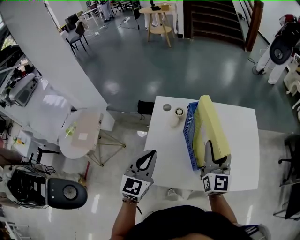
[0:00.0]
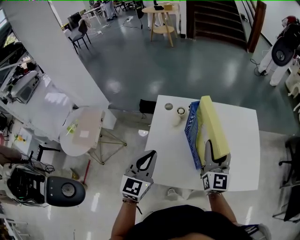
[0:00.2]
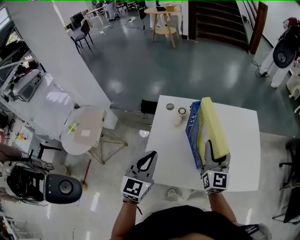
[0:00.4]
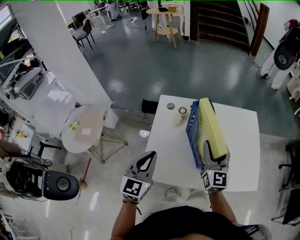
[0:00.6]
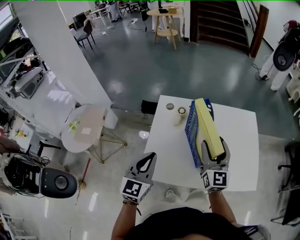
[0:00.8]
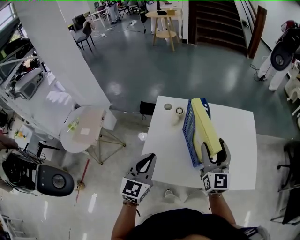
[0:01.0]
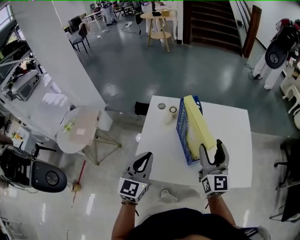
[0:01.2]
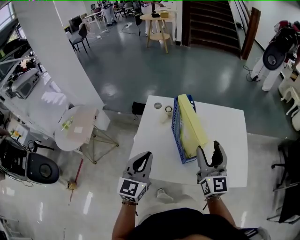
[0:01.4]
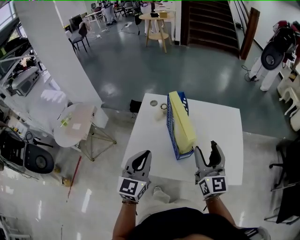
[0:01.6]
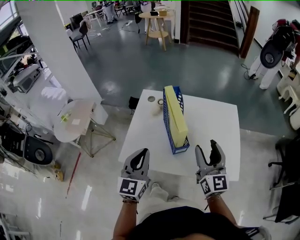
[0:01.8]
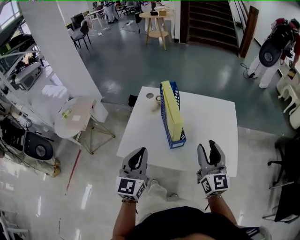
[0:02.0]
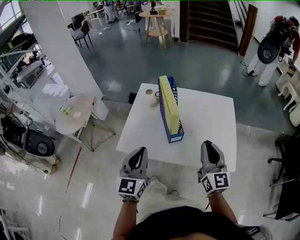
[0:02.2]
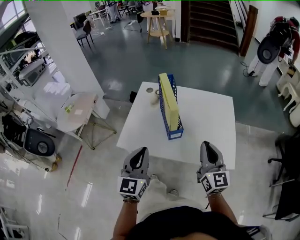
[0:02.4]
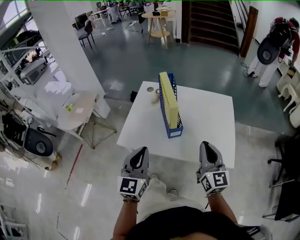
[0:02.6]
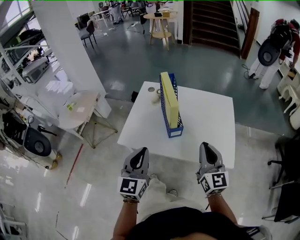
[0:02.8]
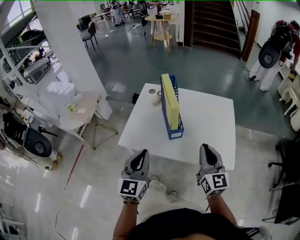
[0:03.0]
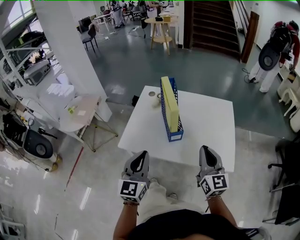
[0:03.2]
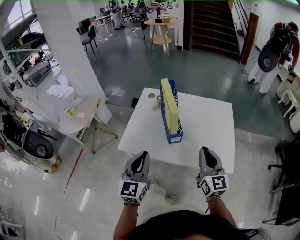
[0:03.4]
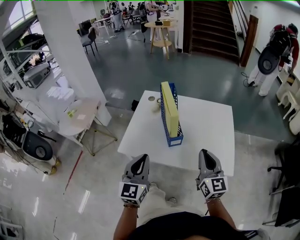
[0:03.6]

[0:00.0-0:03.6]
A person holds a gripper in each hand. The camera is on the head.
0:00.0 to 0:01.8: The grippers both shift to the right and backward by some 15 cm.
0:01.8 to 0:03.6: Both grippers move backward, about 10 cm. The right gripper closes up.

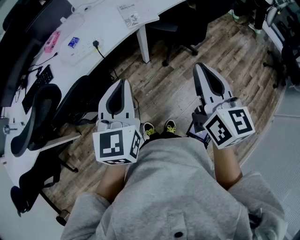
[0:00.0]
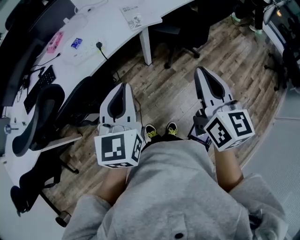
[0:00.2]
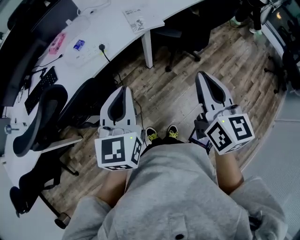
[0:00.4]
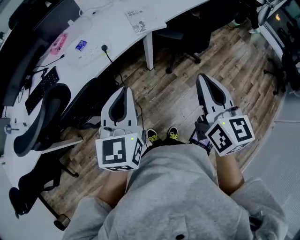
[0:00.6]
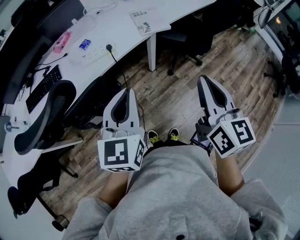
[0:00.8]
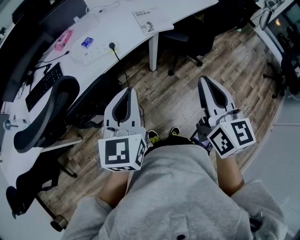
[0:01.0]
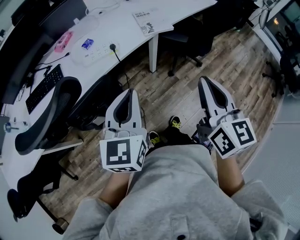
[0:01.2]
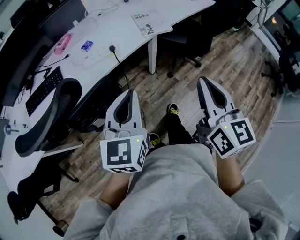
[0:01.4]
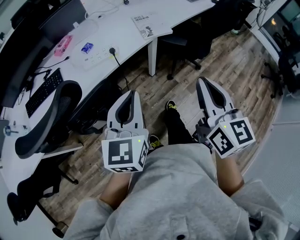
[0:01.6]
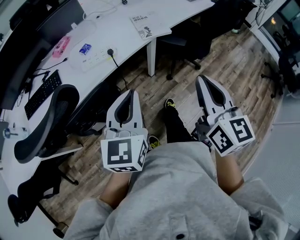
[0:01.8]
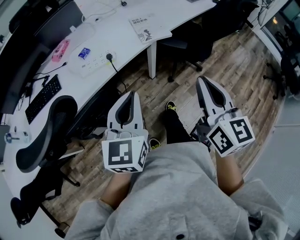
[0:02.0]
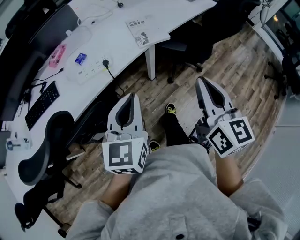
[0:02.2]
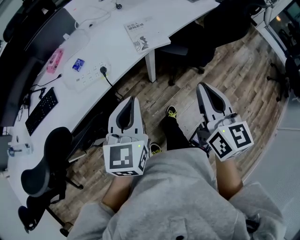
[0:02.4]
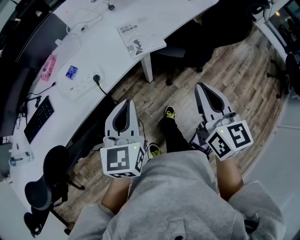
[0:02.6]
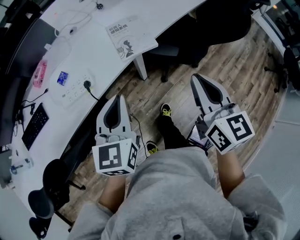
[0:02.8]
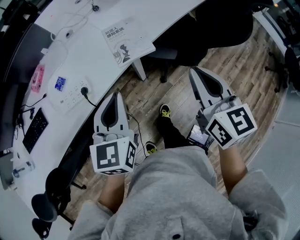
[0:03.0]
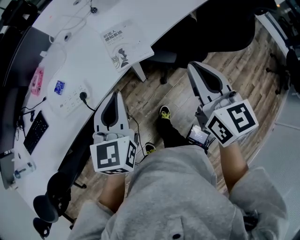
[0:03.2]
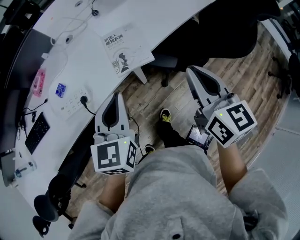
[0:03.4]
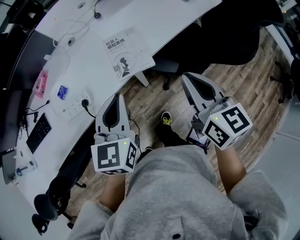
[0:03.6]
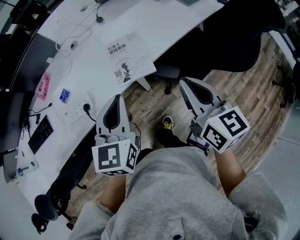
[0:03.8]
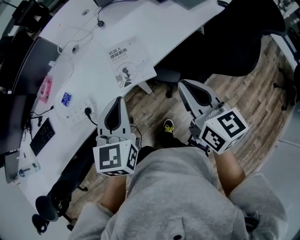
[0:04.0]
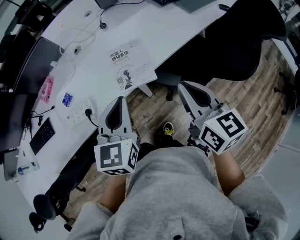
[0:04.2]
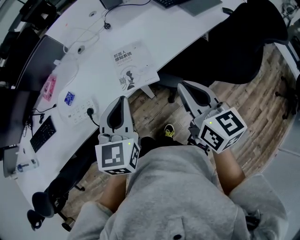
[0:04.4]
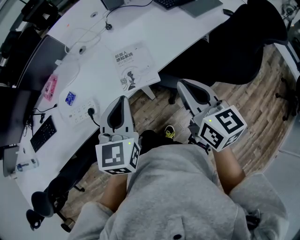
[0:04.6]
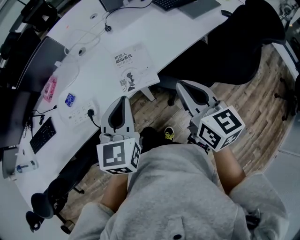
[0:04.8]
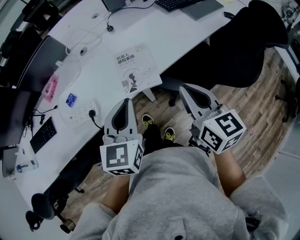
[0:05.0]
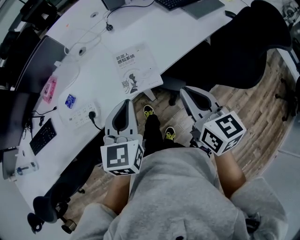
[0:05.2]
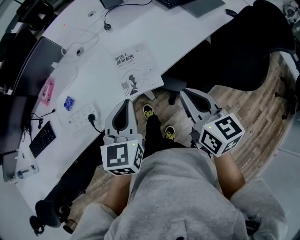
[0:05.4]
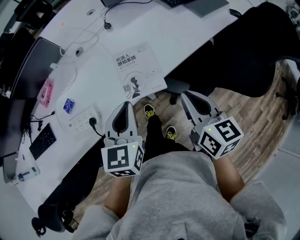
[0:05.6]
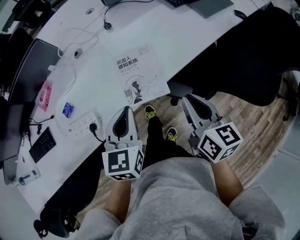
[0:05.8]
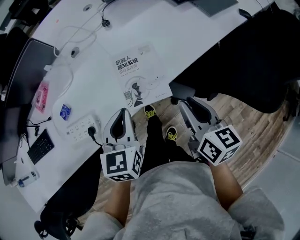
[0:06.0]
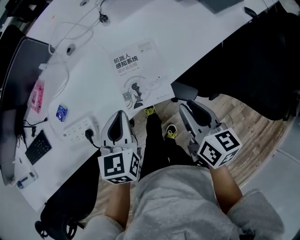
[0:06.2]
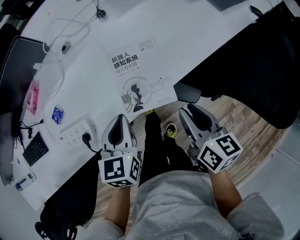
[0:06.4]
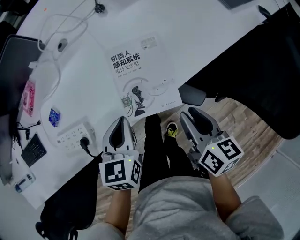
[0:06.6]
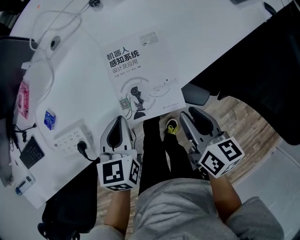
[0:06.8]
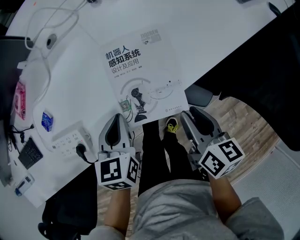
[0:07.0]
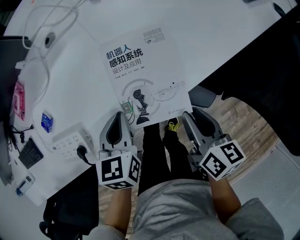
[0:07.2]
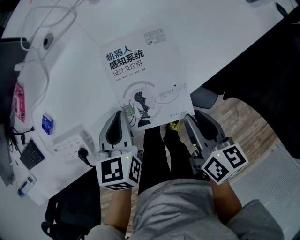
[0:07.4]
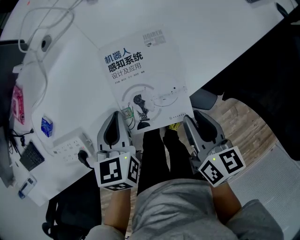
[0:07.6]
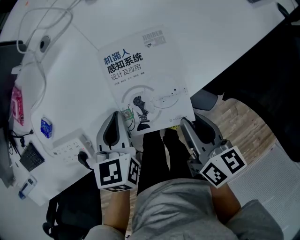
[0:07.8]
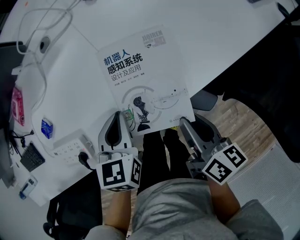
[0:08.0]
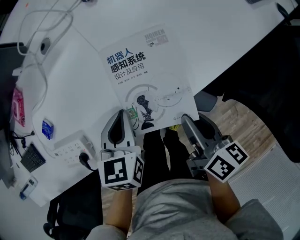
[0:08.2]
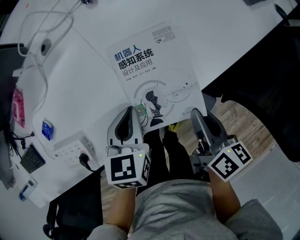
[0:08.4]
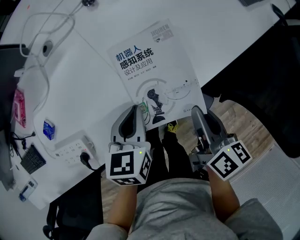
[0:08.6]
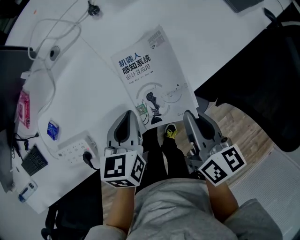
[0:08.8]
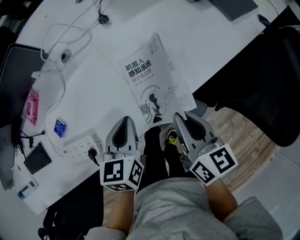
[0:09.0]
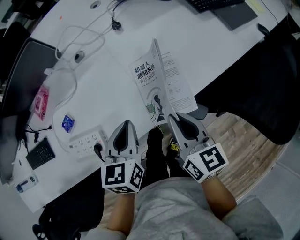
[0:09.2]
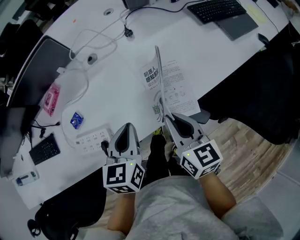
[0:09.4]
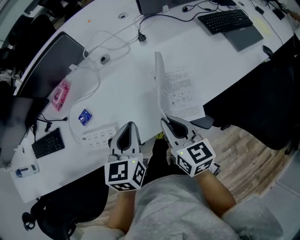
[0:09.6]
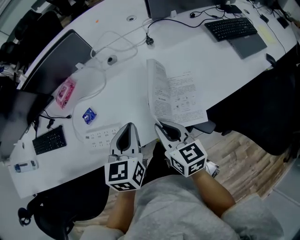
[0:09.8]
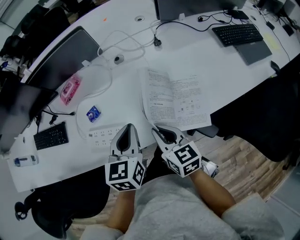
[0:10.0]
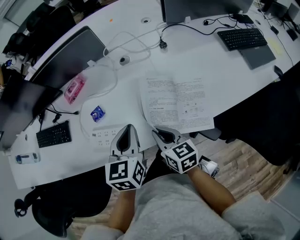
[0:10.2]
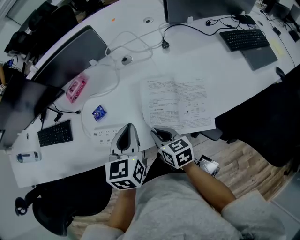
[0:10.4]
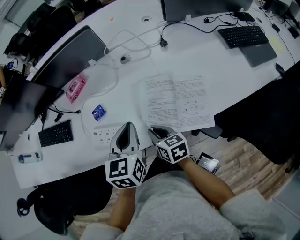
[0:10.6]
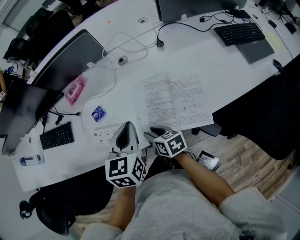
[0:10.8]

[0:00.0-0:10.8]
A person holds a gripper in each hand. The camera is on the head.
0:00.0 to 0:01.6: Both grippers move to the left, some 5 cm.
0:01.6 to 0:03.0: The right gripper moves forward and to the right, approximately 30 cm. The left gripper travels forward by some 25 cm.
0:03.0 to 0:04.6: The right gripper is displaced forward by roughly 10 cm. Meanwhile the left gripper is displaced forward and to the right by approximately 10 cm.
0:04.6 to 0:06.2: The right gripper moves downward and forward, approximately 15 cm, while the left gripper is displaced downward, forward and to the left by some 20 cm.
0:06.2 to 0:07.8: The right gripper travels downward by approximately 10 cm, while the left gripper heads downward and forward, covering some 15 cm.
0:07.8 to 0:09.2: The grippers both shift upward by approximately 10 cm. The right gripper turns by approximately 20 degrees.
0:09.2 to 0:10.8: The right gripper shifts by roughly 25 cm, changes its angle by roughly 40 degrees, and opens its fingers, while the left gripper moves some 10 cm.

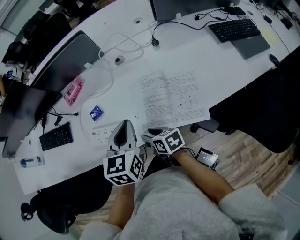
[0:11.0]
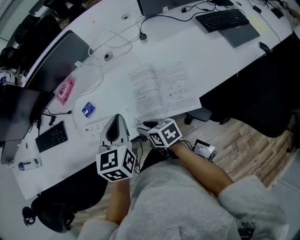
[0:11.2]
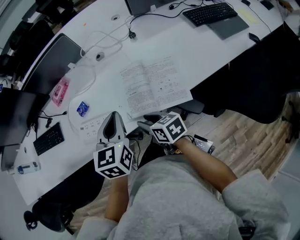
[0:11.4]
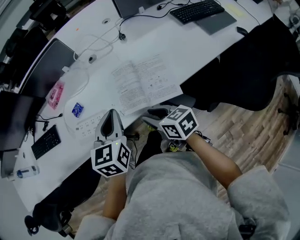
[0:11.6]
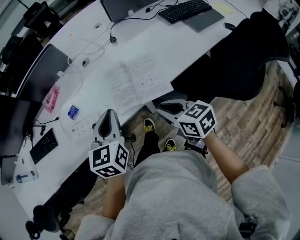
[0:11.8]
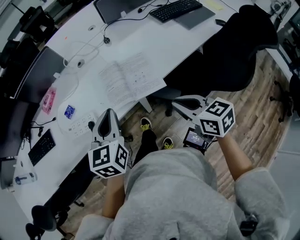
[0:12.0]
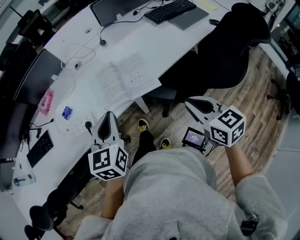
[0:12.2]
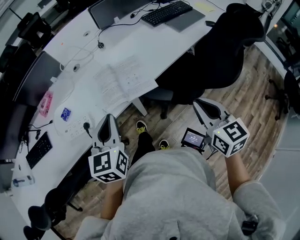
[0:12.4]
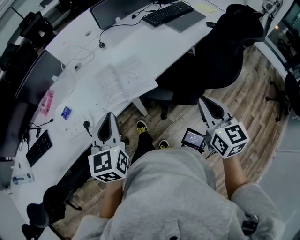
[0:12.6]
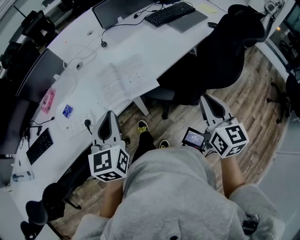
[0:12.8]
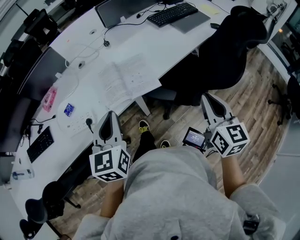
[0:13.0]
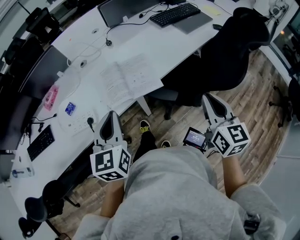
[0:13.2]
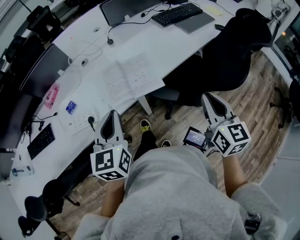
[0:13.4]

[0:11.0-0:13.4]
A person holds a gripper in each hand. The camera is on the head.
0:11.0 to 0:12.2: The right gripper shifts by approximately 40 cm, changes its angle by some 40 degrees, and closes up. The left gripper changes place by about 15 cm.
0:12.2 to 0:13.4: The right gripper travels to the right by roughly 5 cm, and changes its angle by about 30 degrees.

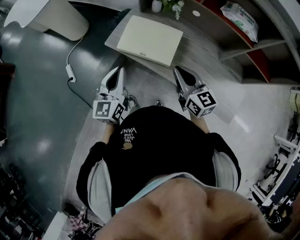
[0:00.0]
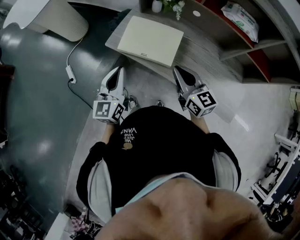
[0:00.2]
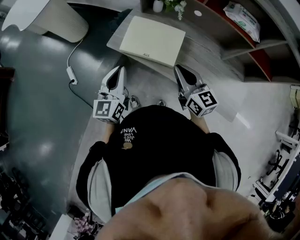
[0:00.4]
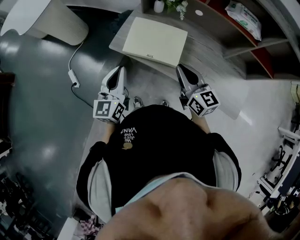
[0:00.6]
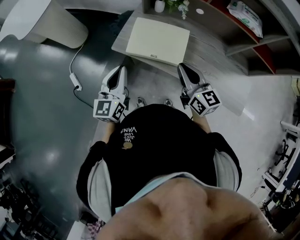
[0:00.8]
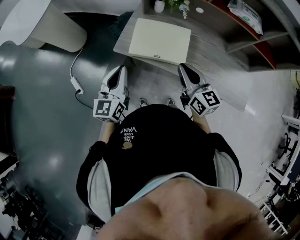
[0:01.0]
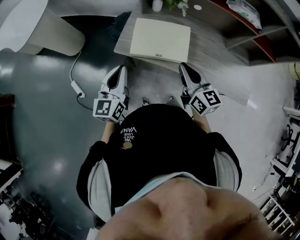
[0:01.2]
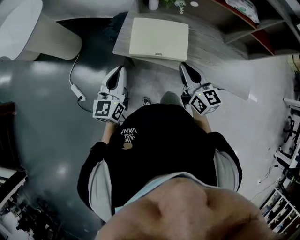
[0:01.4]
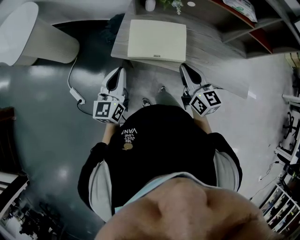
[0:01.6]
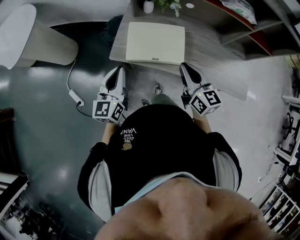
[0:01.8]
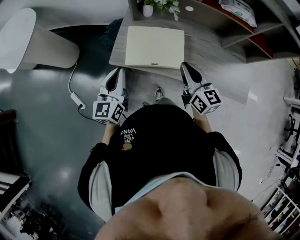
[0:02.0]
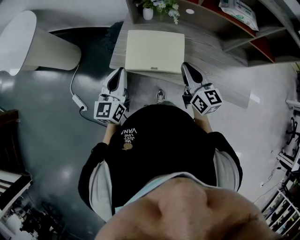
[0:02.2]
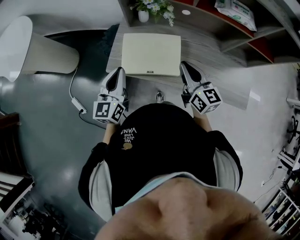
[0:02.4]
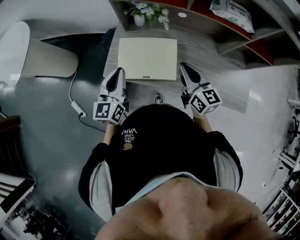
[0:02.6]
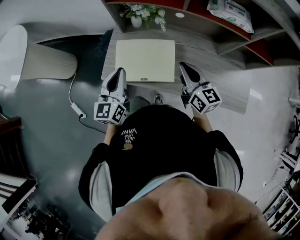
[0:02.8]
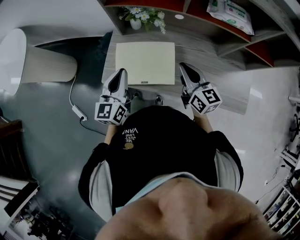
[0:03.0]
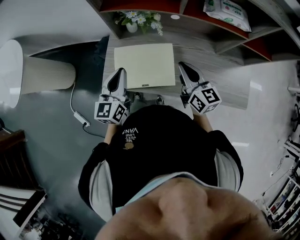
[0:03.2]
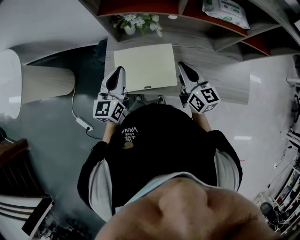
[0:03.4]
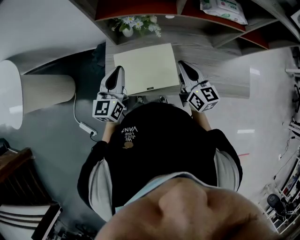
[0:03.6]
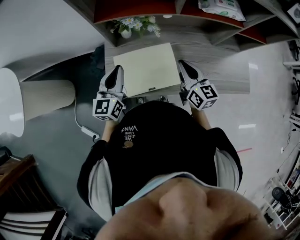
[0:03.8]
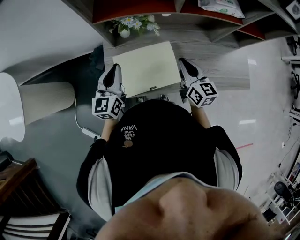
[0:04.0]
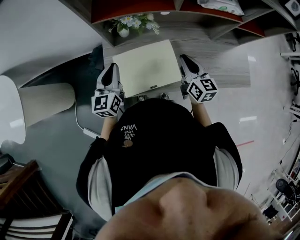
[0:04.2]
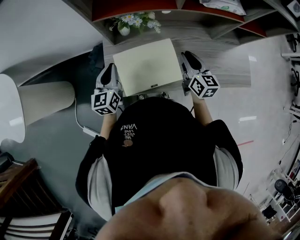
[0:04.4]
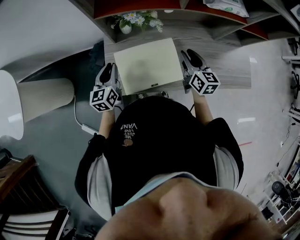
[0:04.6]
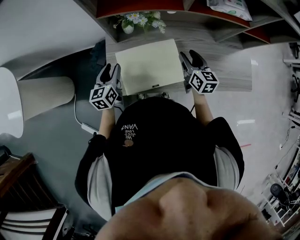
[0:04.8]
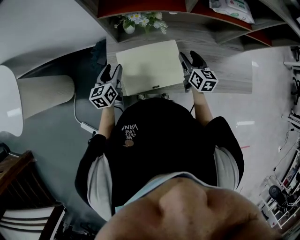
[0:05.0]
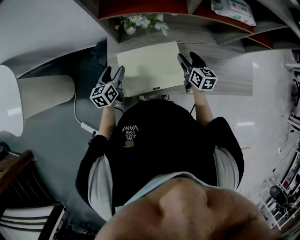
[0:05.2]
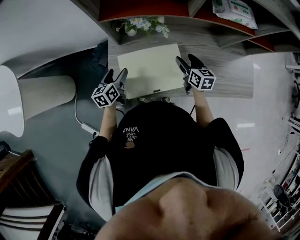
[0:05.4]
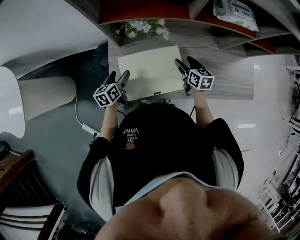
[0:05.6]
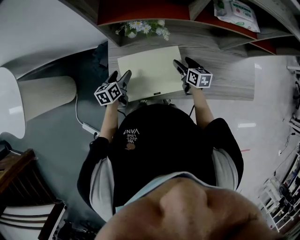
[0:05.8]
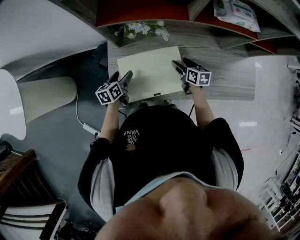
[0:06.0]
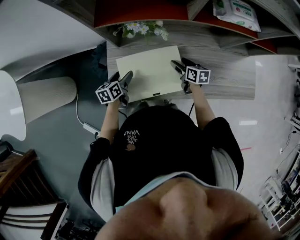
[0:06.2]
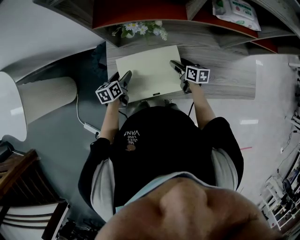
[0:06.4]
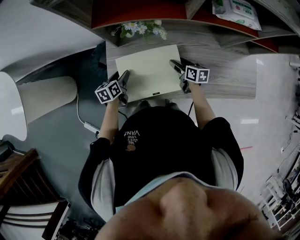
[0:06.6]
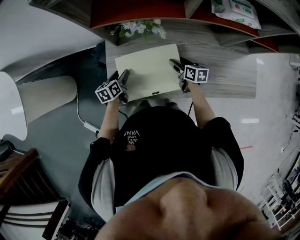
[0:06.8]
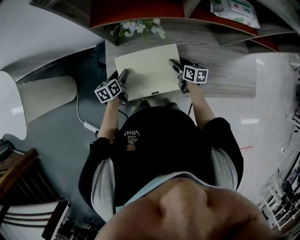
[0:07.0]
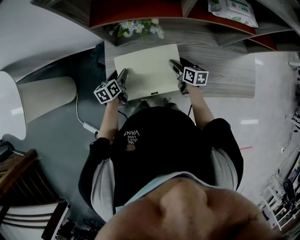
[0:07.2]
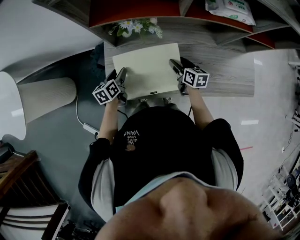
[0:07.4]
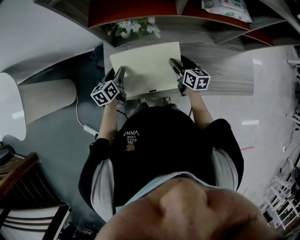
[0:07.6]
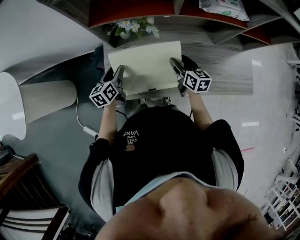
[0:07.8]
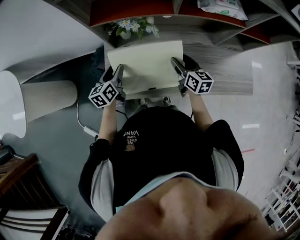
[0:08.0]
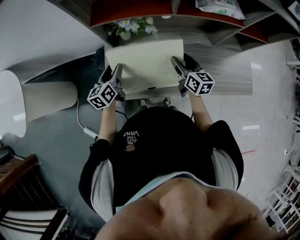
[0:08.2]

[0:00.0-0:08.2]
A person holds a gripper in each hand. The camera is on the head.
0:00.0 to 0:01.6: The right gripper heads to the left, covering about 10 cm, and rotates some 20 degrees, while the left gripper heads to the left and forward, covering roughly 10 cm.
0:01.6 to 0:03.2: The grippers both shift forward and to the right by roughly 15 cm.
0:03.2 to 0:05.0: The right gripper is displaced downward and forward by approximately 15 cm, swivels roughly 30 degrees, and opens its fingers, while the left gripper moves downward, to the left and forward, roughly 20 cm, turns by roughly 20 degrees, and opens up.
0:05.0 to 0:06.6: The two grippers go some 10 cm downward. The left gripper rotates about 20 degrees; the right gripper changes its angle by about 30 degrees.
0:06.6 to 0:08.2: The grippers both shift upward by about 15 cm. The left gripper rotates some 20 degrees, while the right gripper rotates roughly 30 degrees.
